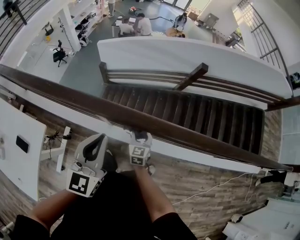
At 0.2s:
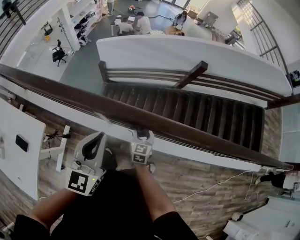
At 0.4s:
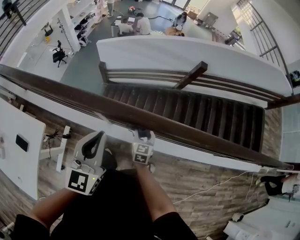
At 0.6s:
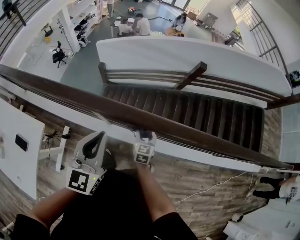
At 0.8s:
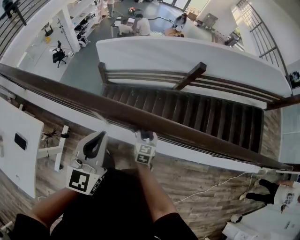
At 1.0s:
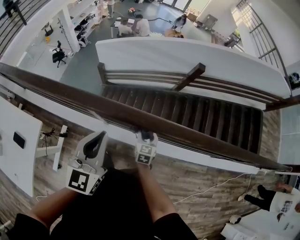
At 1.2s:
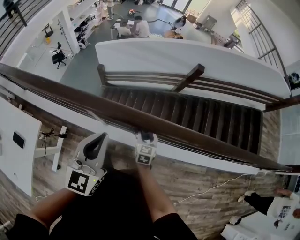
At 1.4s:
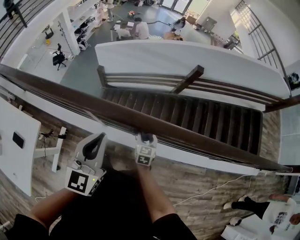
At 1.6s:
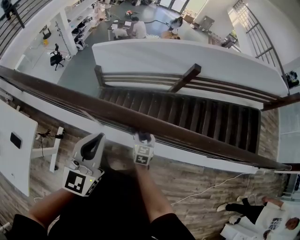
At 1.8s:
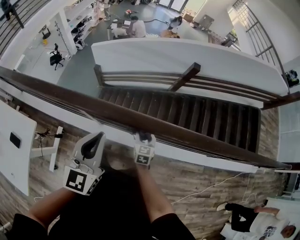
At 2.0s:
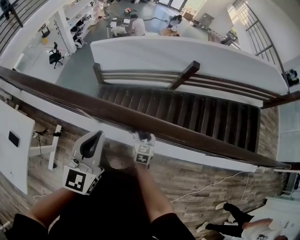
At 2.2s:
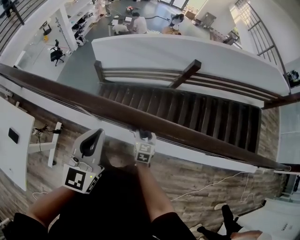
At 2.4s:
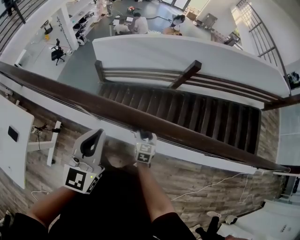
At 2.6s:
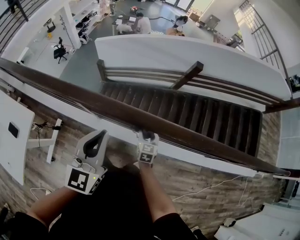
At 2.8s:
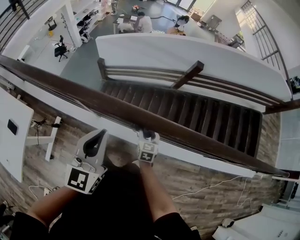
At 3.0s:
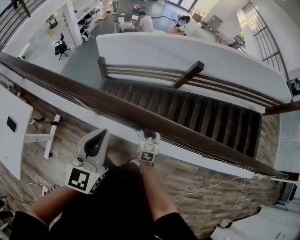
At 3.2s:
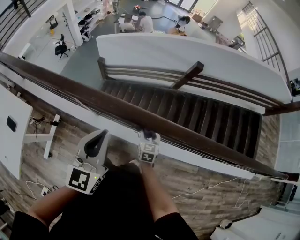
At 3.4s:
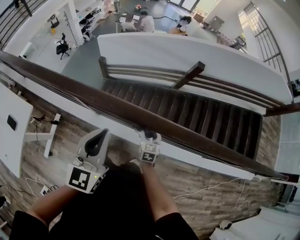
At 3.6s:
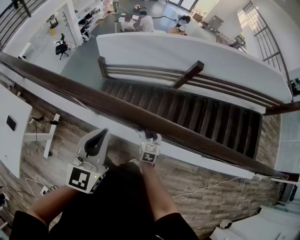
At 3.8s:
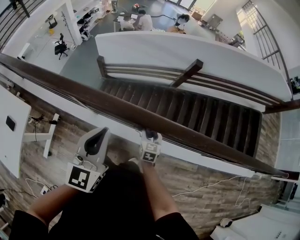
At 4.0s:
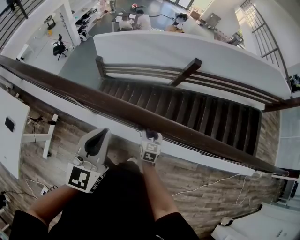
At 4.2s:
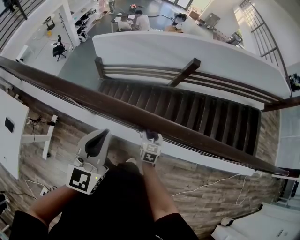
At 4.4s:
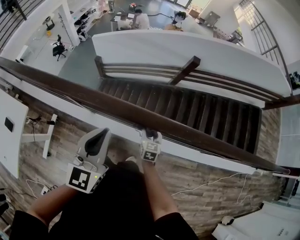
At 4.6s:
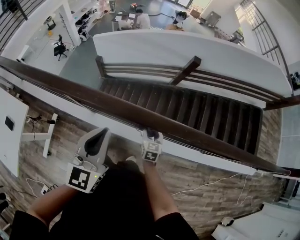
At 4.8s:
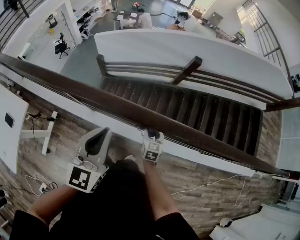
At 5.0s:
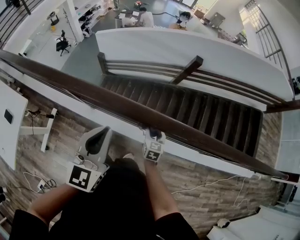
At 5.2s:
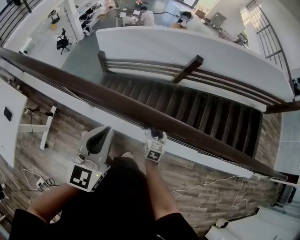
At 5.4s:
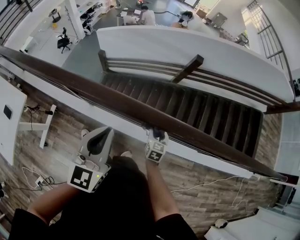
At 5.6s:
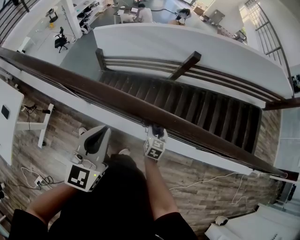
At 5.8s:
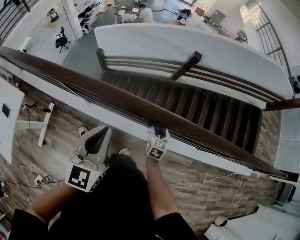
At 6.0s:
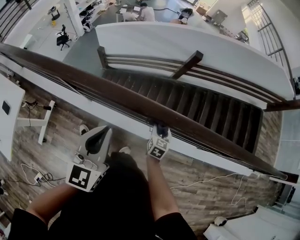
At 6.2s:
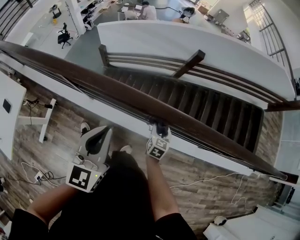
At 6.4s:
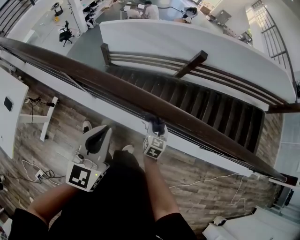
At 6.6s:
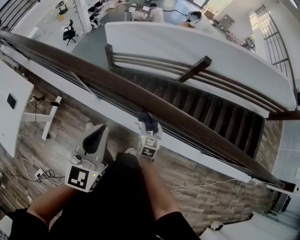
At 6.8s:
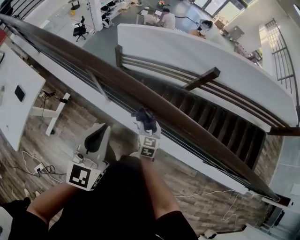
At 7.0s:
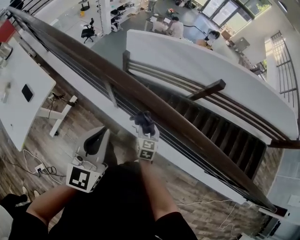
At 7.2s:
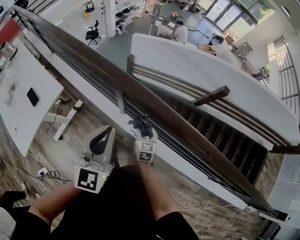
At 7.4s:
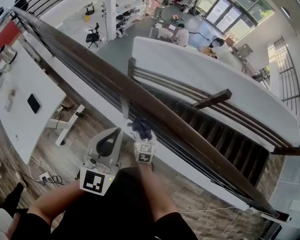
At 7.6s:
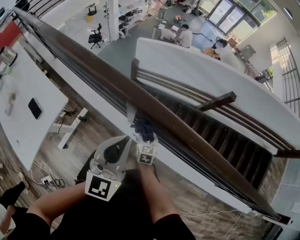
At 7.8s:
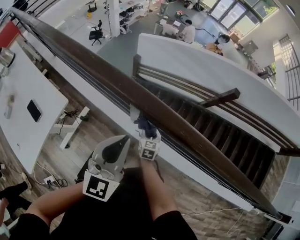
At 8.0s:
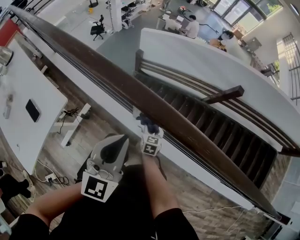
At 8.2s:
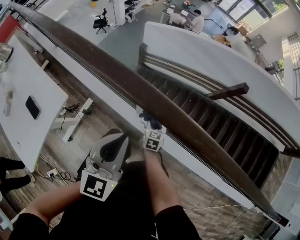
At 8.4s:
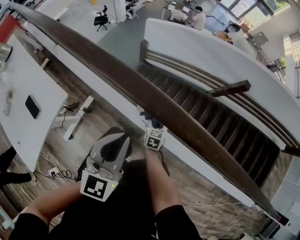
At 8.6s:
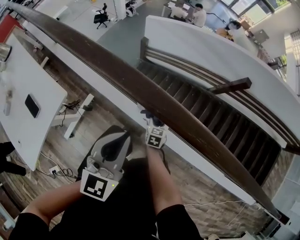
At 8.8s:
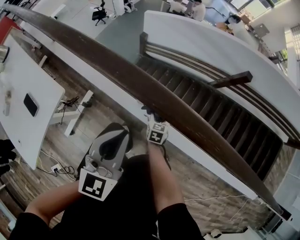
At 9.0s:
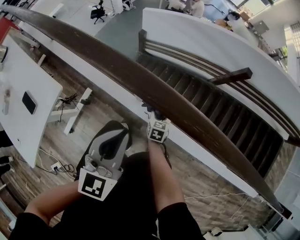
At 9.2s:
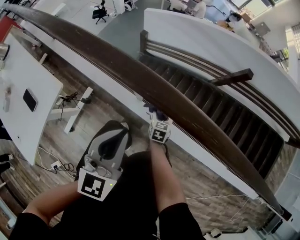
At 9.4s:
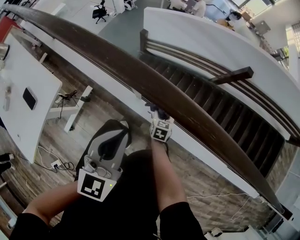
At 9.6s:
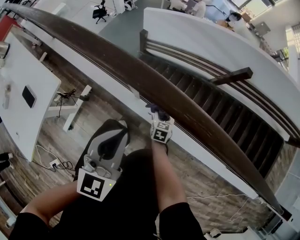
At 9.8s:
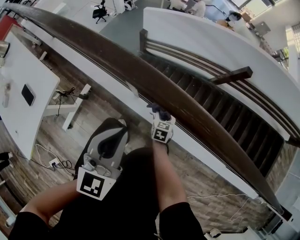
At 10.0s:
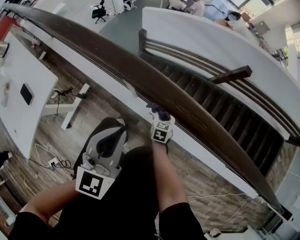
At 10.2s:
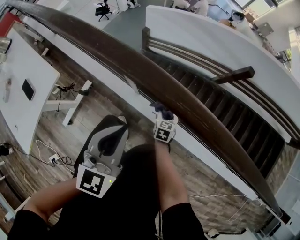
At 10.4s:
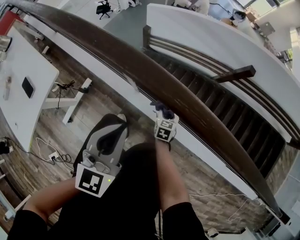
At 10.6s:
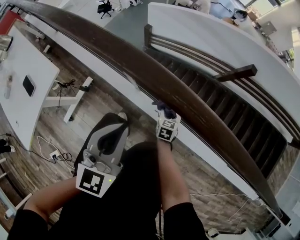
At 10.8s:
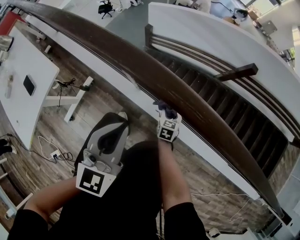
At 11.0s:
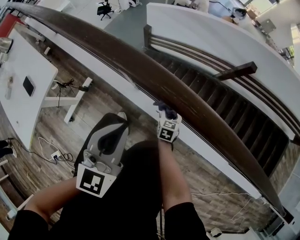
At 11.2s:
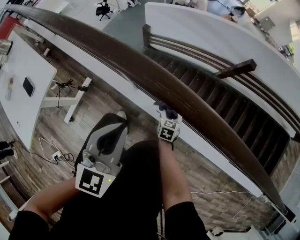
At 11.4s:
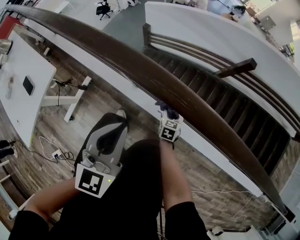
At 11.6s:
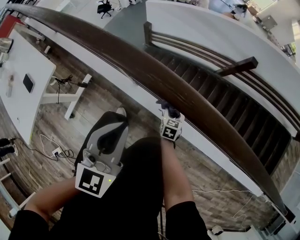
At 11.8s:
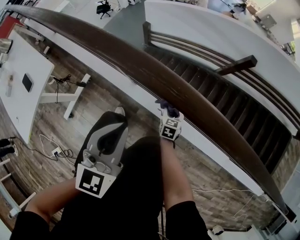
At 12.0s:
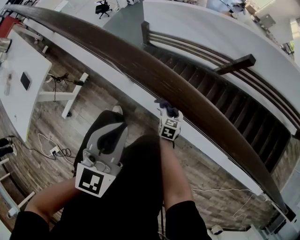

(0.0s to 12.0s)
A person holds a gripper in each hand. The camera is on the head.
0.0s - 1.6s: Both grippers move to the right, some 10 cm.
1.6s - 3.0s: Both grippers travel together to the right, about 5 cm.
3.0s - 4.4s: The right gripper goes some 5 cm to the right.
4.4s - 6.0s: The right gripper shifts approximately 10 cm to the right; the left gripper moves to the right, about 5 cm.
6.0s - 7.6s: The left gripper moves approximately 25 cm; the right gripper ends up roughly 40 cm from where it was, and changes its angle by about 30 degrees.
7.6s - 9.0s: The left gripper changes place by approximately 5 cm. Meanwhile the right gripper travels downward by about 5 cm.
9.0s - 10.4s: The left gripper shifts by roughly 5 cm. Meanwhile the right gripper travels to the right by approximately 5 cm.
10.4s - 12.0s: The two grippers go approximately 10 cm to the right.

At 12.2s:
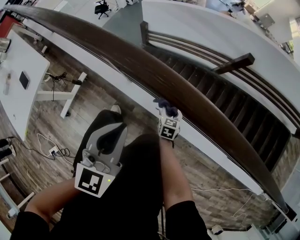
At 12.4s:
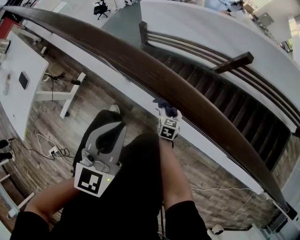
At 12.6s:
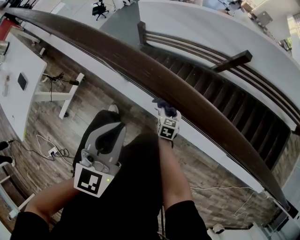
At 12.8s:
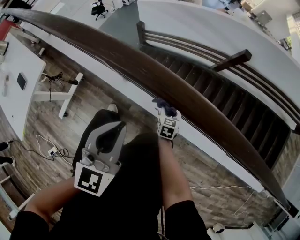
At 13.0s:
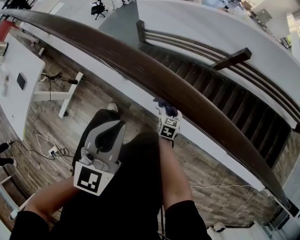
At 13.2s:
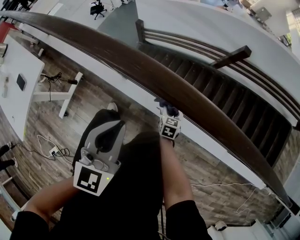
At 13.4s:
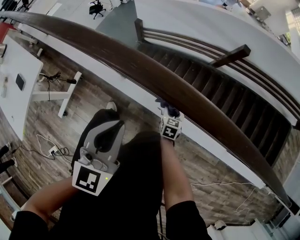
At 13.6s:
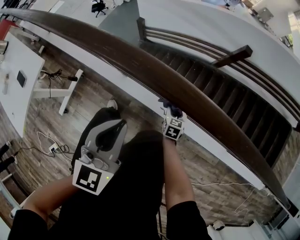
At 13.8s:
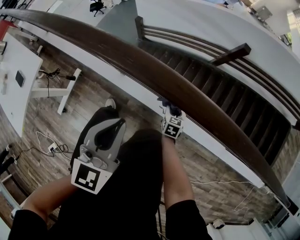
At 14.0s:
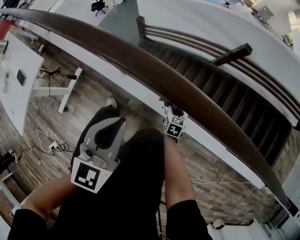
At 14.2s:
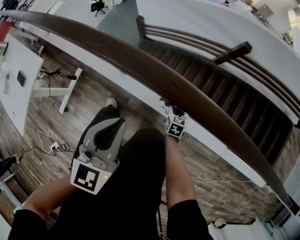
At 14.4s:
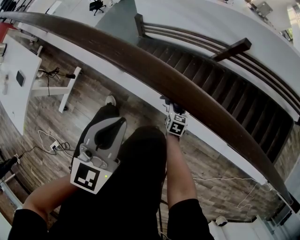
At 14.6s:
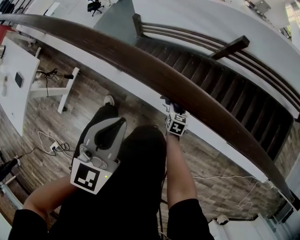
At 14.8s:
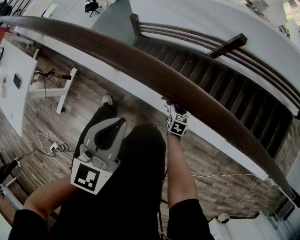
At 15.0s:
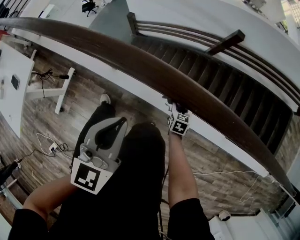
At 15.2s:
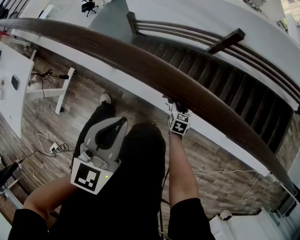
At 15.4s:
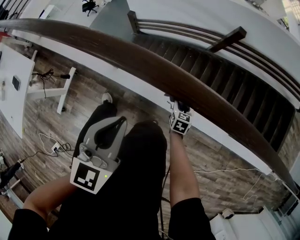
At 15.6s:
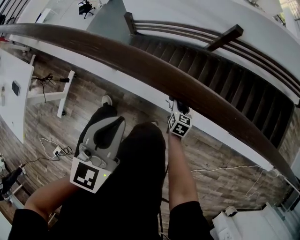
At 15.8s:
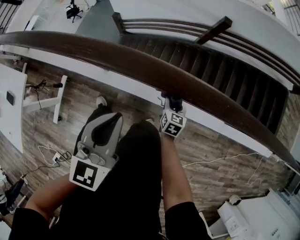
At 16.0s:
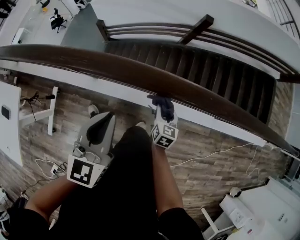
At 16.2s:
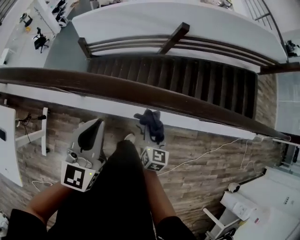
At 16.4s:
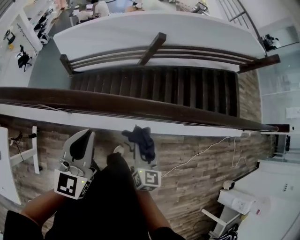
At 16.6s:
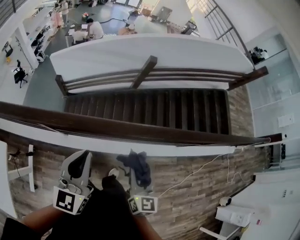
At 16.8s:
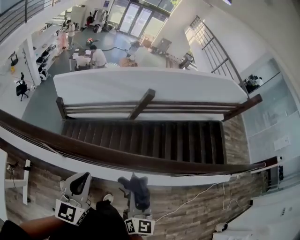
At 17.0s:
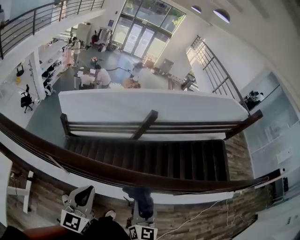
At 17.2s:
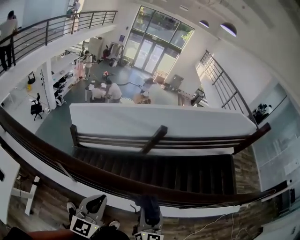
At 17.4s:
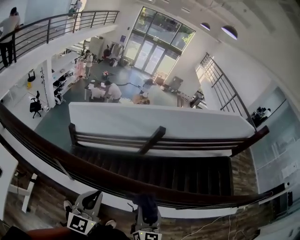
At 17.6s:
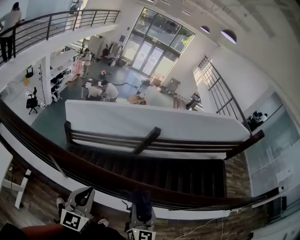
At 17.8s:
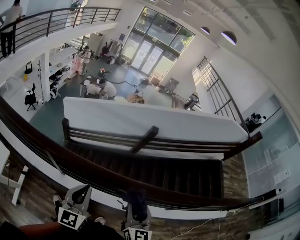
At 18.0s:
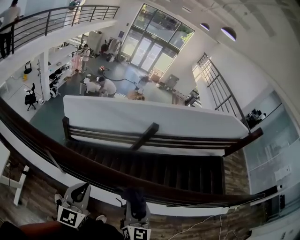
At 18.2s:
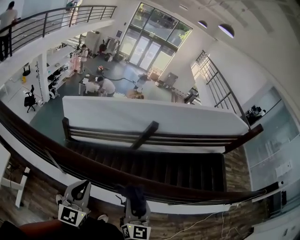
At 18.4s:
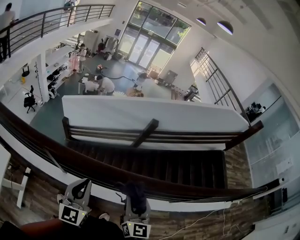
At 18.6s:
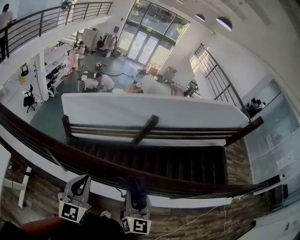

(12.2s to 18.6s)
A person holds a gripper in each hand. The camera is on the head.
12.2s - 13.8s: The right gripper is displaced to the right by about 10 cm.
13.8s - 15.4s: The left gripper goes roughly 5 cm to the right, while the right gripper goes approximately 10 cm to the right.
15.4s - 17.0s: The right gripper is displaced upward by roughly 40 cm, and tips its fingers upward by roughly 40 degrees. Meanwhile the left gripper moves forward and upward, about 10 cm.
17.0s - 18.6s: The grippers stay close to where they were, moving slightly.

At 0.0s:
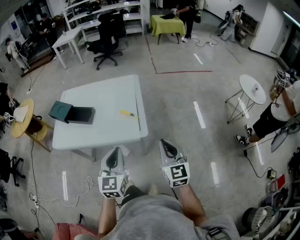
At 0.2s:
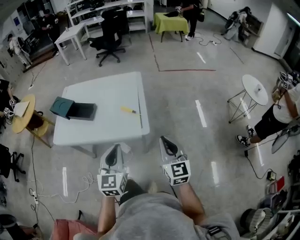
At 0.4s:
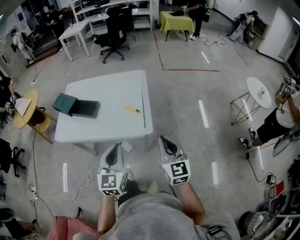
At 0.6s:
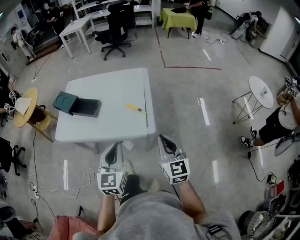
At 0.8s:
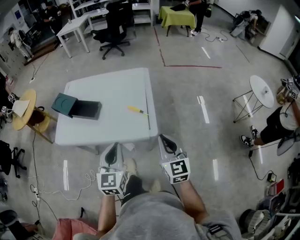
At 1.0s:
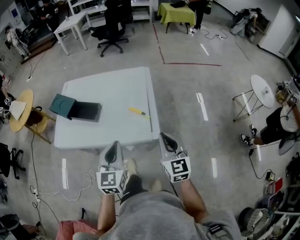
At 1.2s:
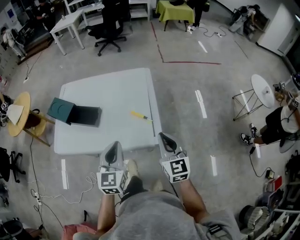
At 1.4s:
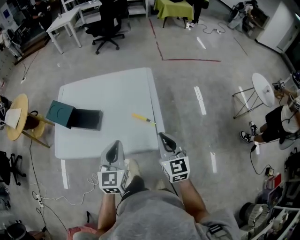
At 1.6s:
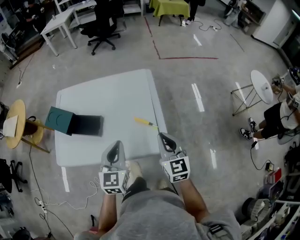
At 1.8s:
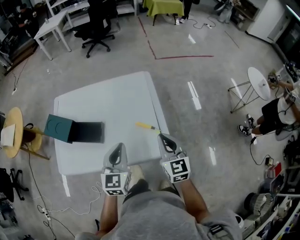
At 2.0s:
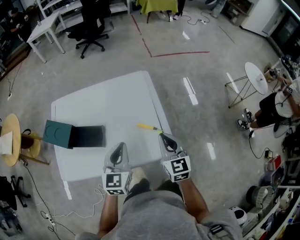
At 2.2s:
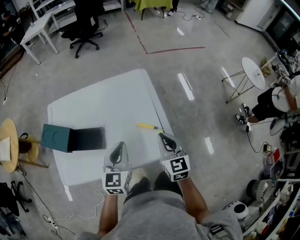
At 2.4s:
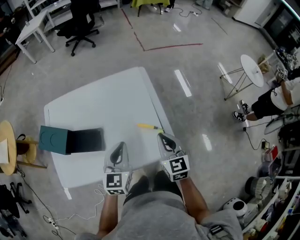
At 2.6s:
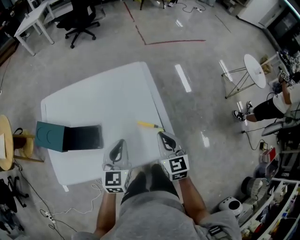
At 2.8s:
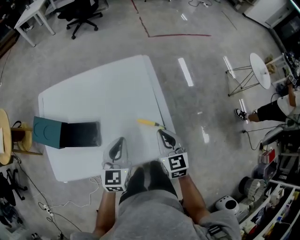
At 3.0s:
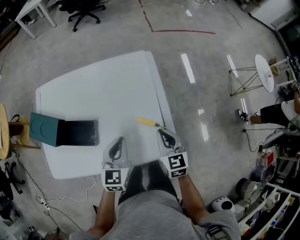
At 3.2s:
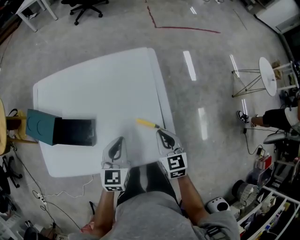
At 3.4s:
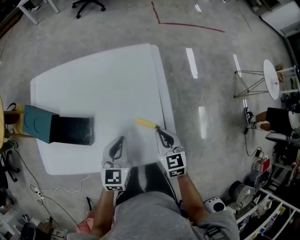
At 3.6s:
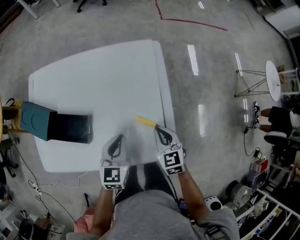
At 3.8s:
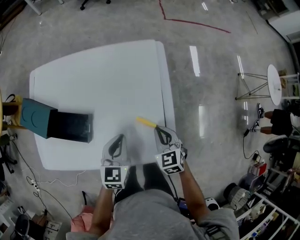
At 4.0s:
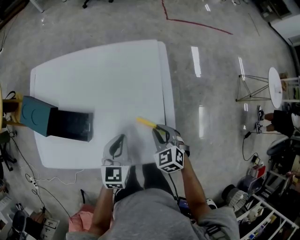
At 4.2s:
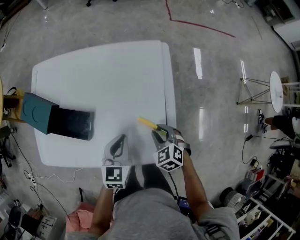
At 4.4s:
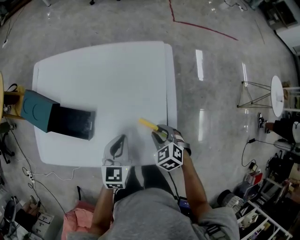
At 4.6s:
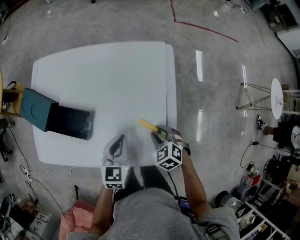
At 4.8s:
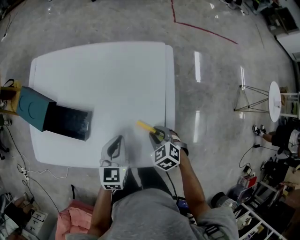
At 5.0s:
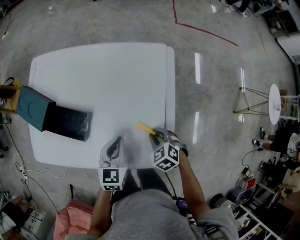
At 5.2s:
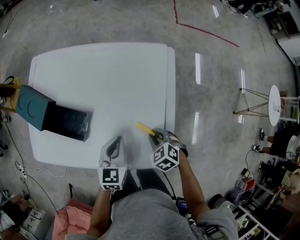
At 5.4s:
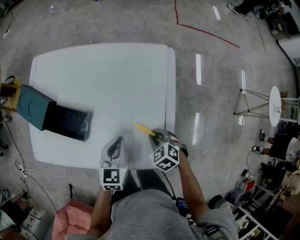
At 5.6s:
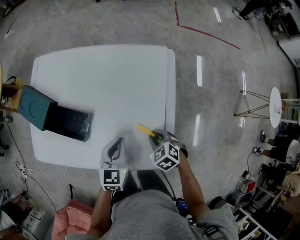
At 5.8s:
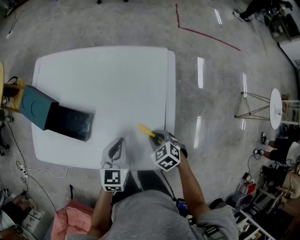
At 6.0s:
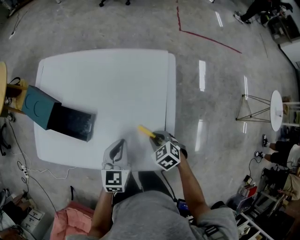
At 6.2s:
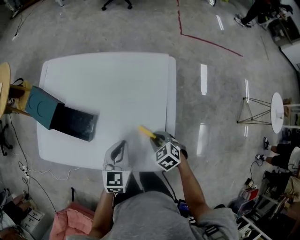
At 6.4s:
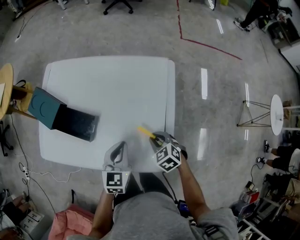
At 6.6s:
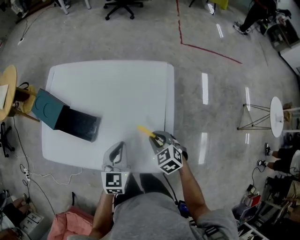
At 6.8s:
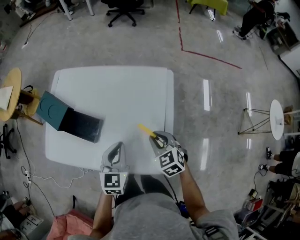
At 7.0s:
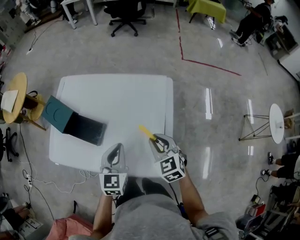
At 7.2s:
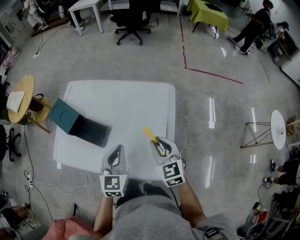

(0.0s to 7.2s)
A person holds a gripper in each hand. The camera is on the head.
0.0s - 1.4s: The two grippers go roughly 20 cm forward and to the left.
1.4s - 2.8s: The left gripper moves forward and downward, some 15 cm. The right gripper heads forward, downward and to the left, covering approximately 15 cm.
2.8s - 4.4s: The right gripper shifts roughly 15 cm downward, tips its fingers downward by some 30 degrees, and opens up. The left gripper heads downward, covering approximately 10 cm.
4.4s - 5.8s: There are only small adjustments of the grippers.
5.8s - 7.2s: The left gripper is displaced upward by roughly 15 cm, while the right gripper heads upward, covering roughly 20 cm, and angles its fingers upward, by approximately 40 degrees.
